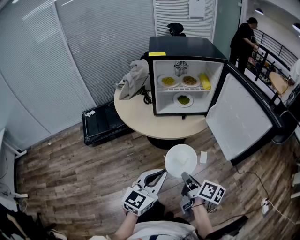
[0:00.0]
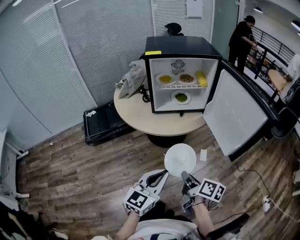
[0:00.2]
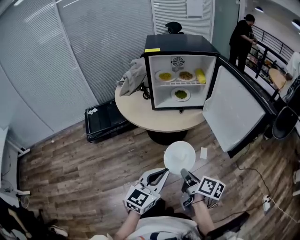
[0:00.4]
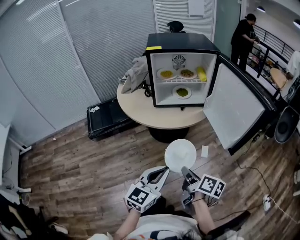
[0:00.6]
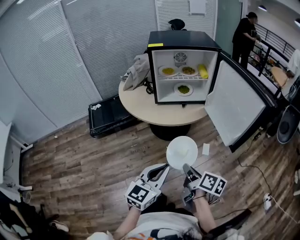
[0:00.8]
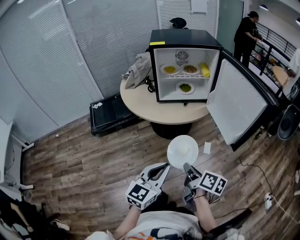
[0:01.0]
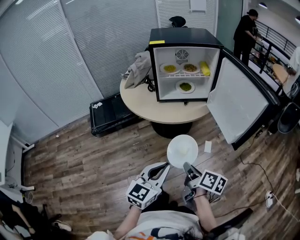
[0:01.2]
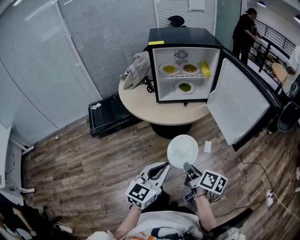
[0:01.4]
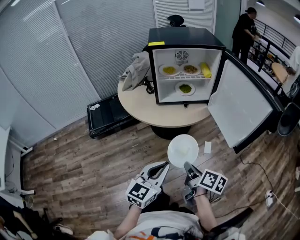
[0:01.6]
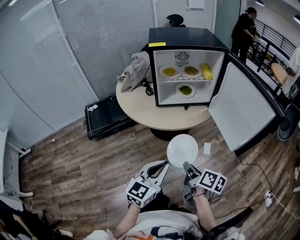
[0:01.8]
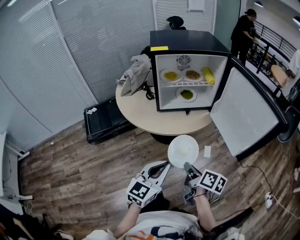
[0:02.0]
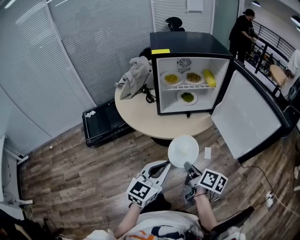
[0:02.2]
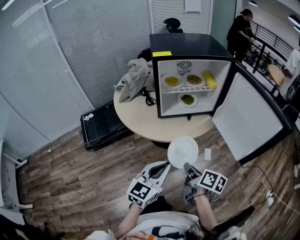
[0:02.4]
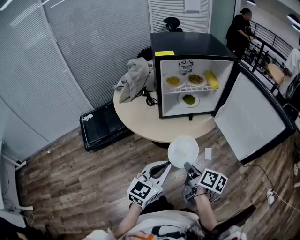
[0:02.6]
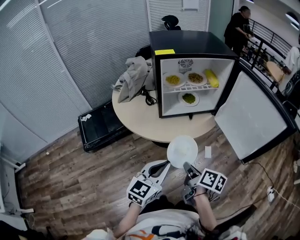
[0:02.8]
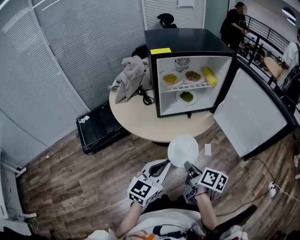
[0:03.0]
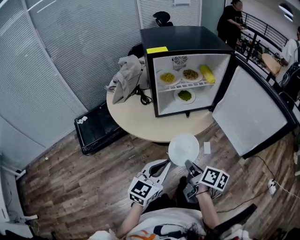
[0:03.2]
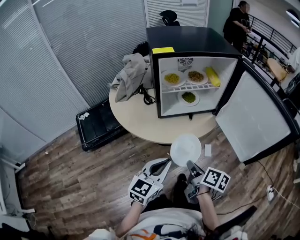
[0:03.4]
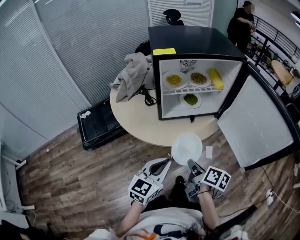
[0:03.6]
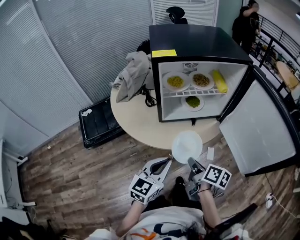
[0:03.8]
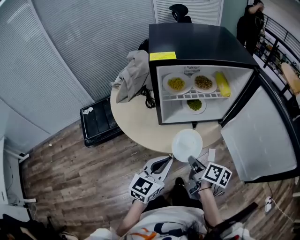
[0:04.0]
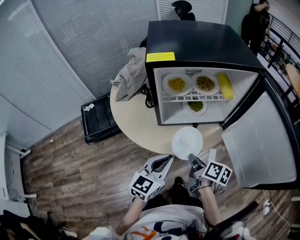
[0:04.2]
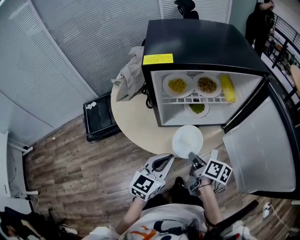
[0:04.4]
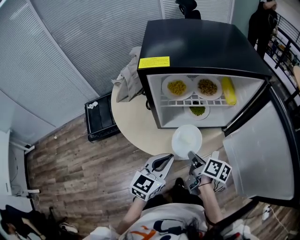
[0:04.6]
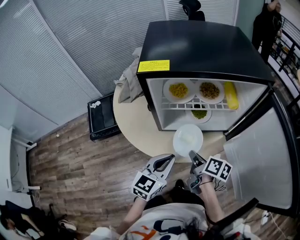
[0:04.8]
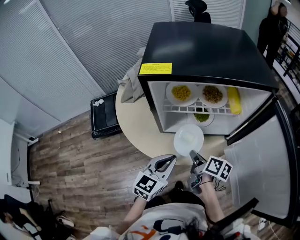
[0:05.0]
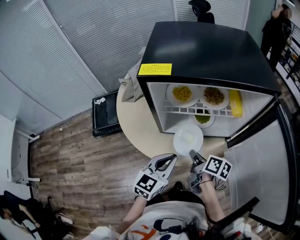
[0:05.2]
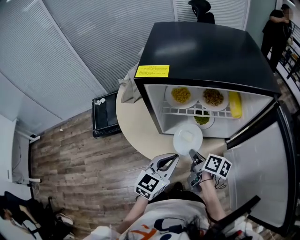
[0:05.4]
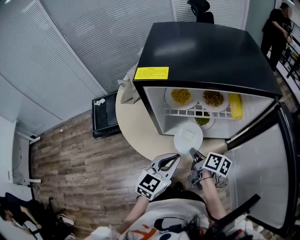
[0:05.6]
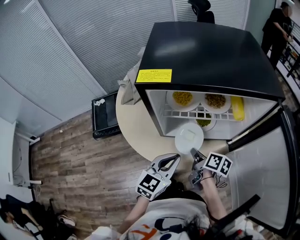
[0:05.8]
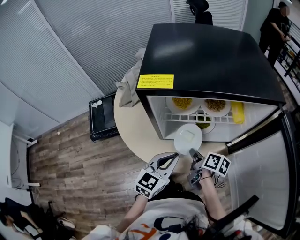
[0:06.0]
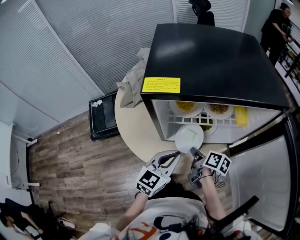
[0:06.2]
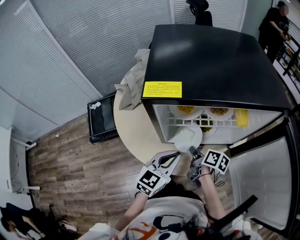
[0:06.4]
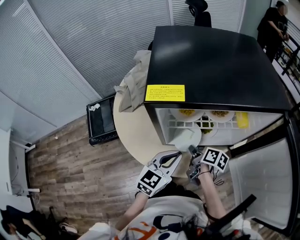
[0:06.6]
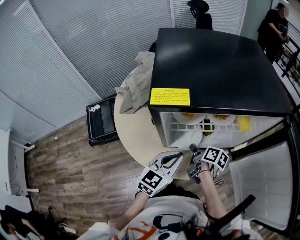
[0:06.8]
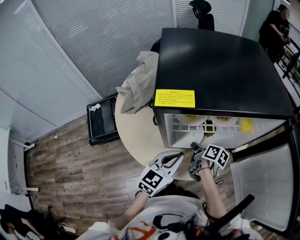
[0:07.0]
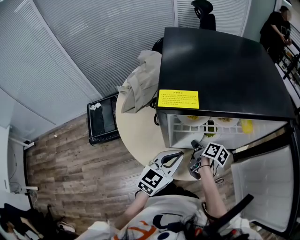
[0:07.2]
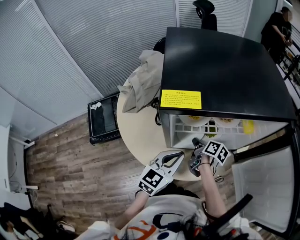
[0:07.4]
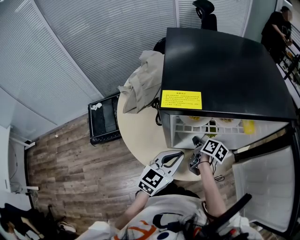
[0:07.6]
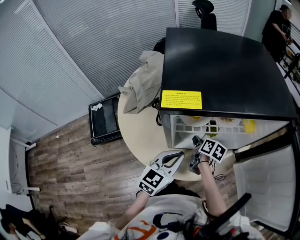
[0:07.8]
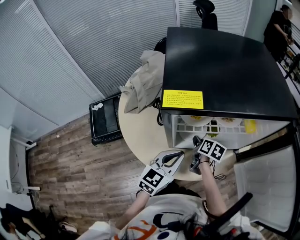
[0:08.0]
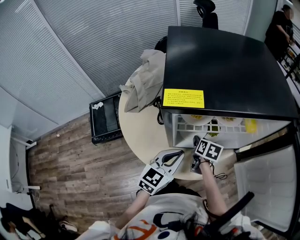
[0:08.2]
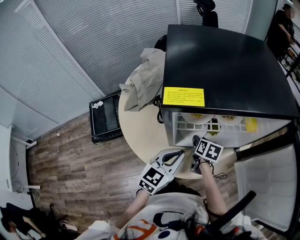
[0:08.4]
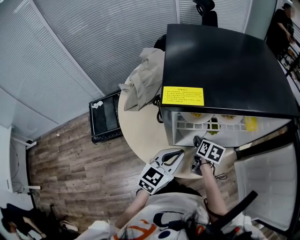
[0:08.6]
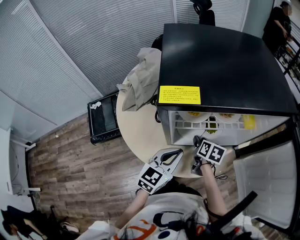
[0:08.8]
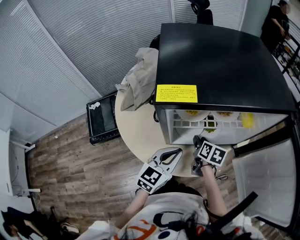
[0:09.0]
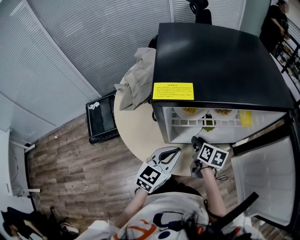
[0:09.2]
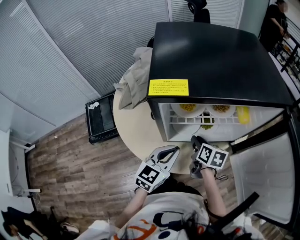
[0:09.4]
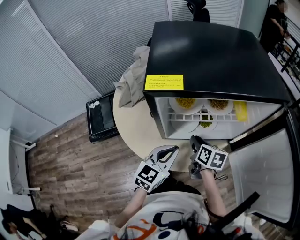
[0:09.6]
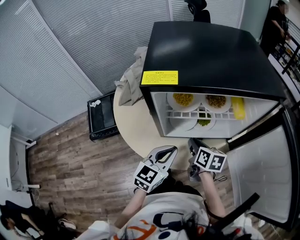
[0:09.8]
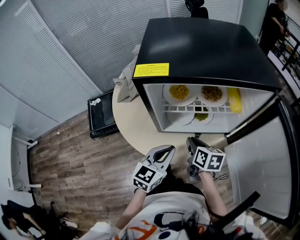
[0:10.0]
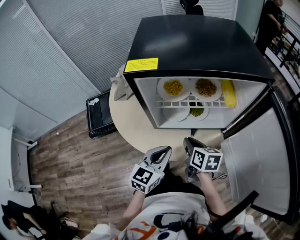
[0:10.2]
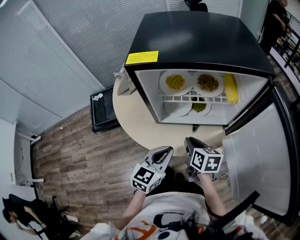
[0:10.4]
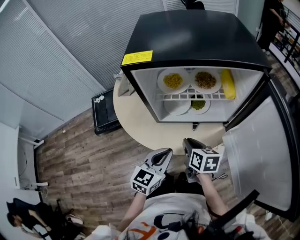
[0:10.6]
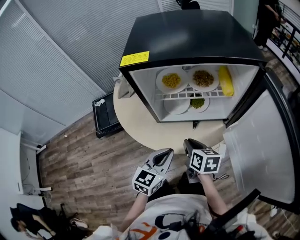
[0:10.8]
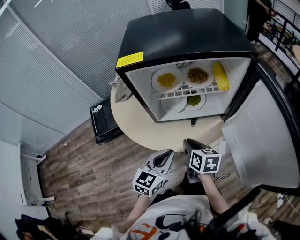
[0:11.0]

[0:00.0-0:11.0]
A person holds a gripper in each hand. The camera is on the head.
0:01.6 to 0:03.2: Both grippers move forward and to the left, approximately 15 cm.
0:03.2 to 0:04.8: The two grippers go approximately 20 cm forward.
0:04.8 to 0:06.2: Both grippers travel together forward, about 10 cm.
0:06.2 to 0:07.8: The right gripper is displaced forward by roughly 10 cm.
0:07.8 to 0:09.4: The right gripper travels upward by some 5 cm.
0:09.4 to 0:11.0: The two grippers go some 15 cm backward.

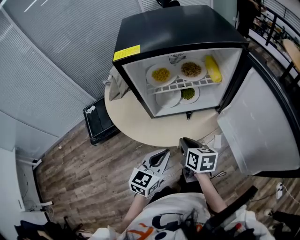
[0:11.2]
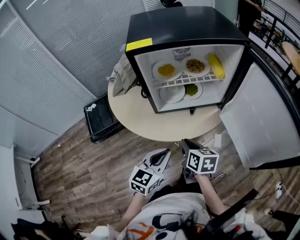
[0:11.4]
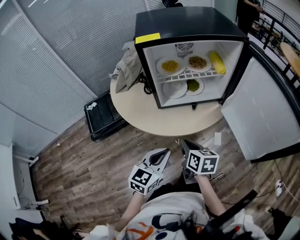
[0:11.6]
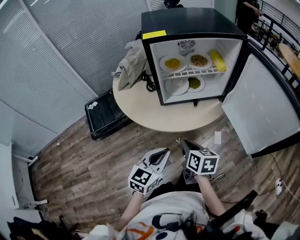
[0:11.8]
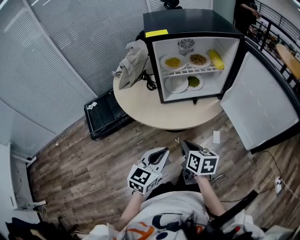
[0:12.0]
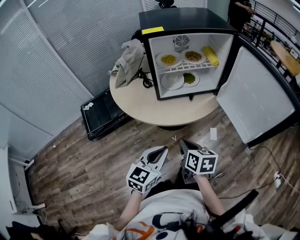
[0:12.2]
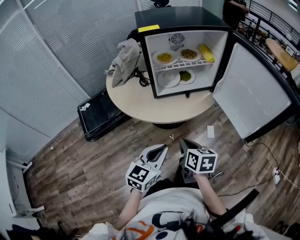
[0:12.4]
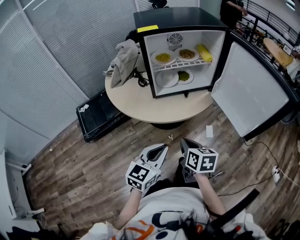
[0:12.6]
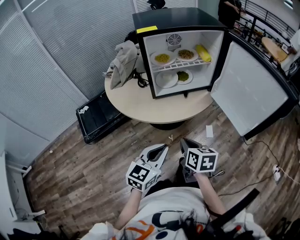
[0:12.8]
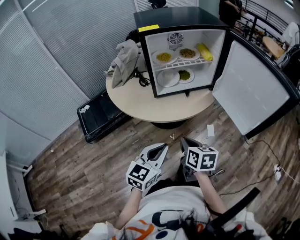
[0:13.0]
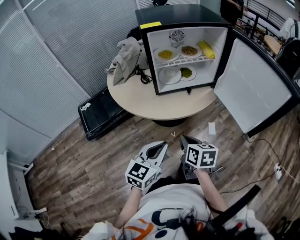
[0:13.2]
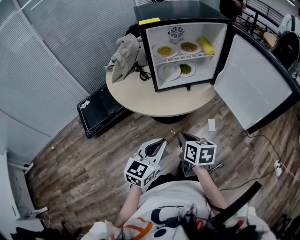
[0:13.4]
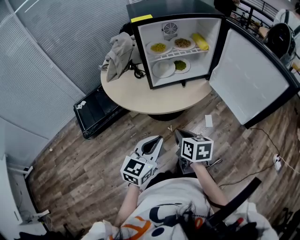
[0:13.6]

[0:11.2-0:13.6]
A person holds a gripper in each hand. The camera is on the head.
0:11.2 to 0:12.4: Both grippers travel together backward, some 15 cm.
0:12.4 to 0:13.6: There are only small adjustments of the grippers.

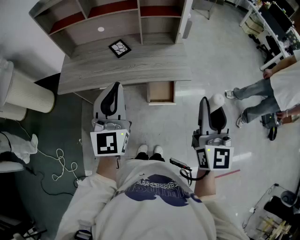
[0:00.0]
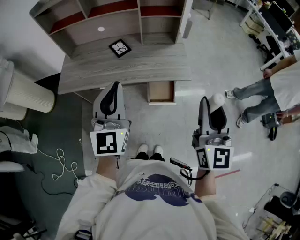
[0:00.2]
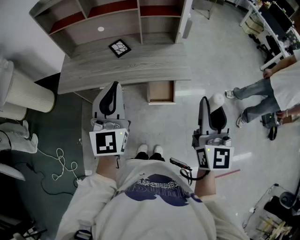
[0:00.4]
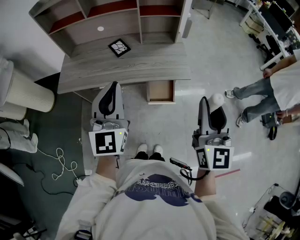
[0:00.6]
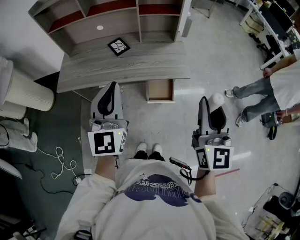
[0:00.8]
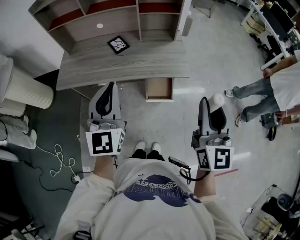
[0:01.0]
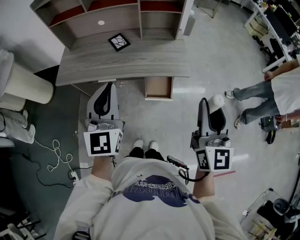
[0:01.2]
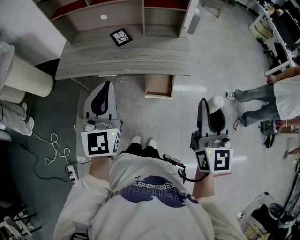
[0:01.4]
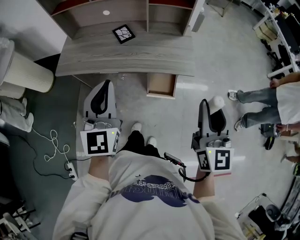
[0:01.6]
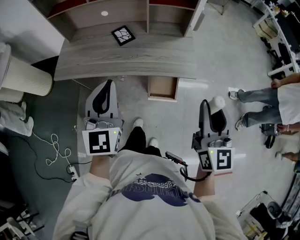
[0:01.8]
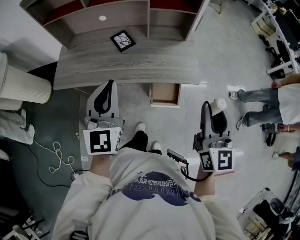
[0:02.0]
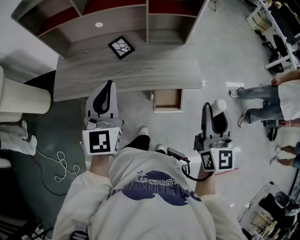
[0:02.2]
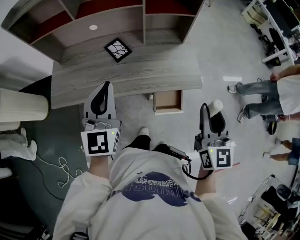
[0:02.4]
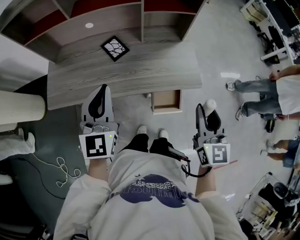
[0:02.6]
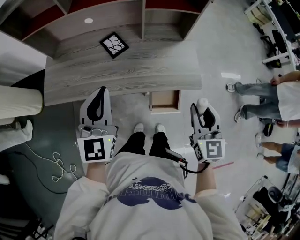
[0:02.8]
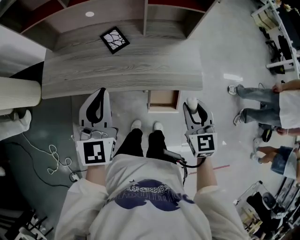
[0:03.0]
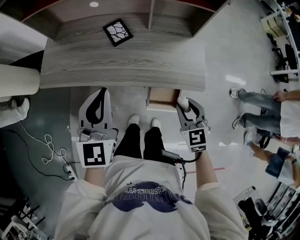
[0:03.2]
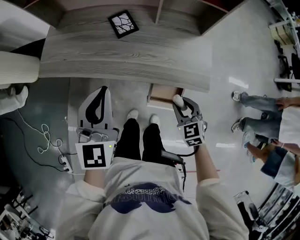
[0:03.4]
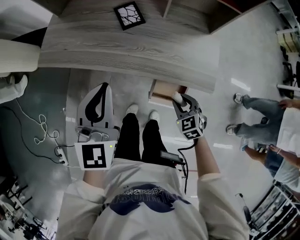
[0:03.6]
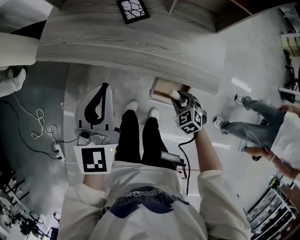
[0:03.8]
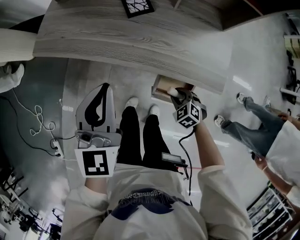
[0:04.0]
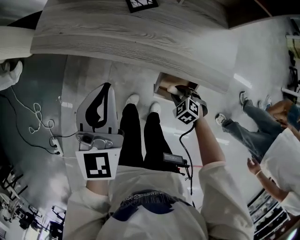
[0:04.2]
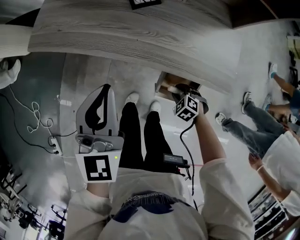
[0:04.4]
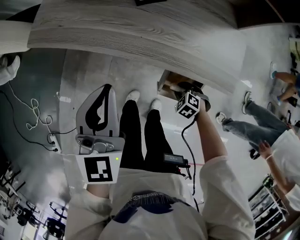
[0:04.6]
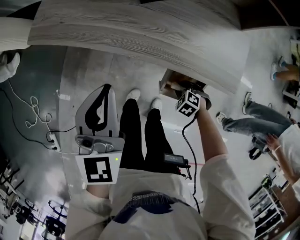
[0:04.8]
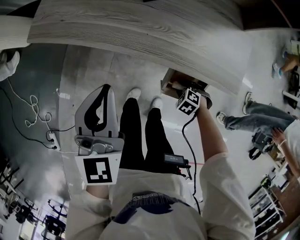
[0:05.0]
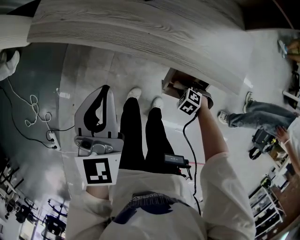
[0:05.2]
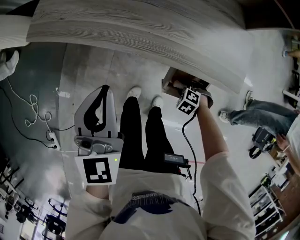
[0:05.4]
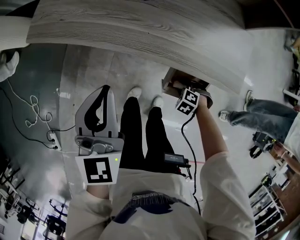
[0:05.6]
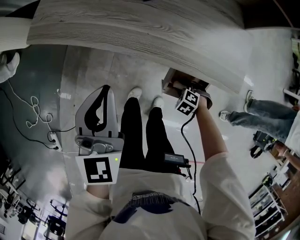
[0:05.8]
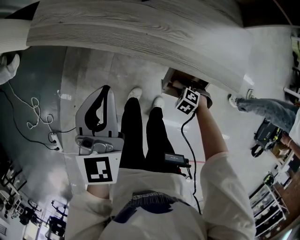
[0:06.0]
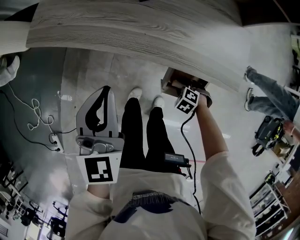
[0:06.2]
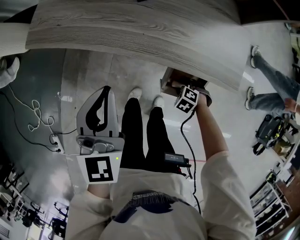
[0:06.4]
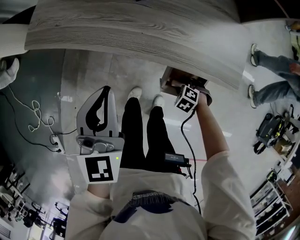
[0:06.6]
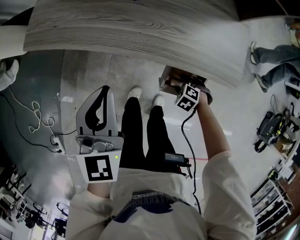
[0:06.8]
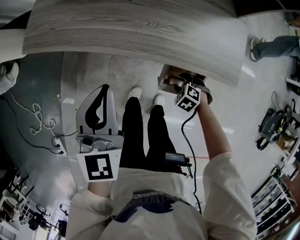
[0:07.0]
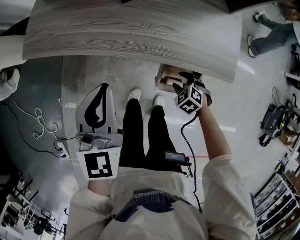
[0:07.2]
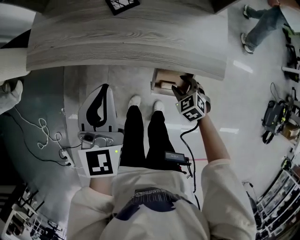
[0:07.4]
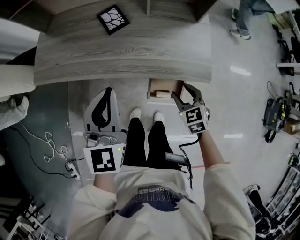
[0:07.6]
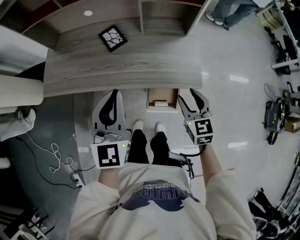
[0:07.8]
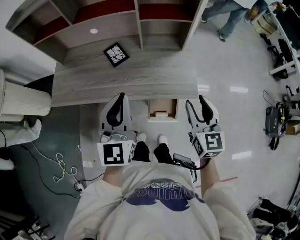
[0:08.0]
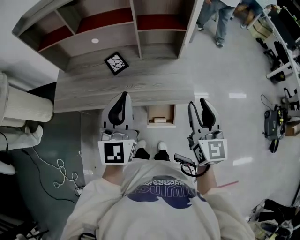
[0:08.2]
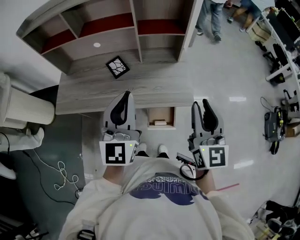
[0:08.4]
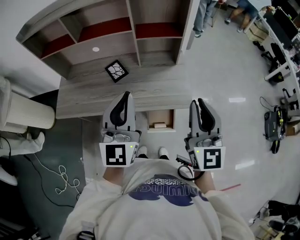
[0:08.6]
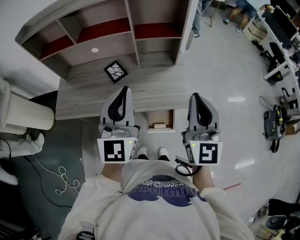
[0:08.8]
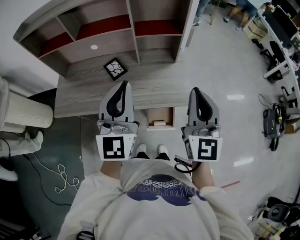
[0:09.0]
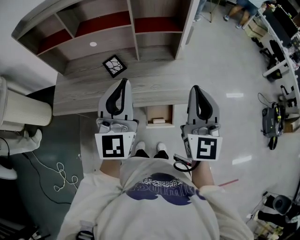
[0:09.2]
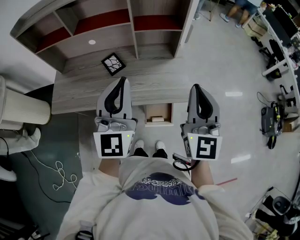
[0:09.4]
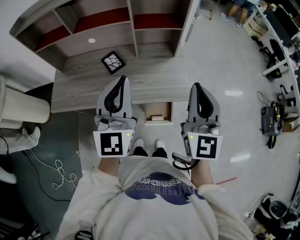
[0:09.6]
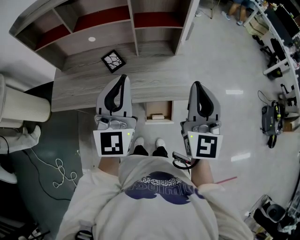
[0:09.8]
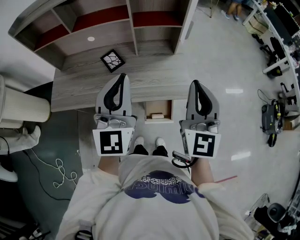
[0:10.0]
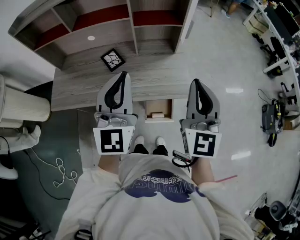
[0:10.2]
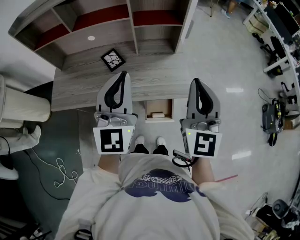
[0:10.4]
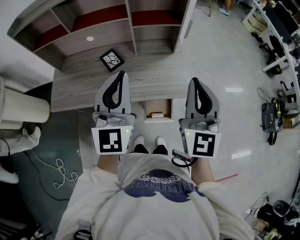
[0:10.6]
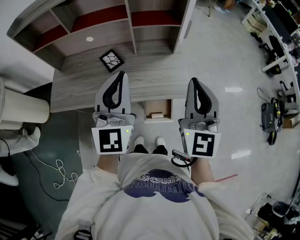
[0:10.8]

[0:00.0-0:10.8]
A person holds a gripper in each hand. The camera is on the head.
0:00.0 to 0:01.6: The right gripper shifts by some 5 cm.
0:01.6 to 0:03.0: The left gripper moves forward and downward, approximately 20 cm, while the right gripper shifts about 25 cm downward and forward, and changes its angle by roughly 30 degrees.
0:03.0 to 0:04.6: The left gripper moves downward, approximately 15 cm. The right gripper goes about 40 cm downward, and tilts its fingers some 50 degrees downward.
0:04.6 to 0:06.2: The grippers move only a little.
0:06.2 to 0:07.8: The left gripper is displaced upward by some 15 cm, while the right gripper moves upward, some 35 cm, and tilts its fingers about 60 degrees upward.
0:07.8 to 0:09.2: The left gripper goes approximately 15 cm upward; the right gripper travels upward by about 30 cm, tilts its fingers approximately 40 degrees upward, and closes its fingers.
0:09.2 to 0:10.8: Both grippers stay put.
